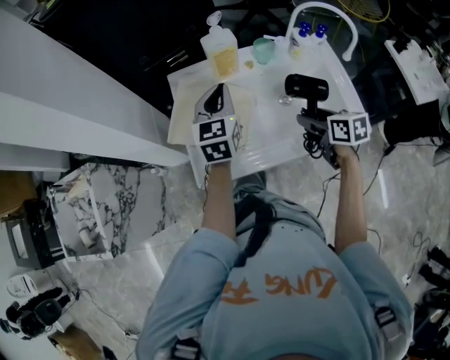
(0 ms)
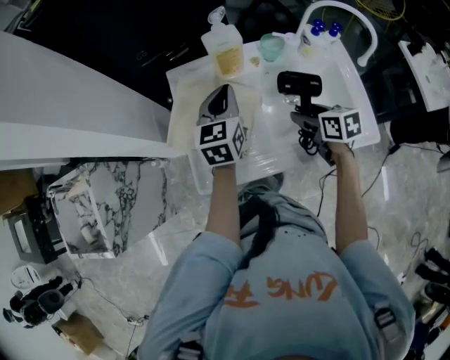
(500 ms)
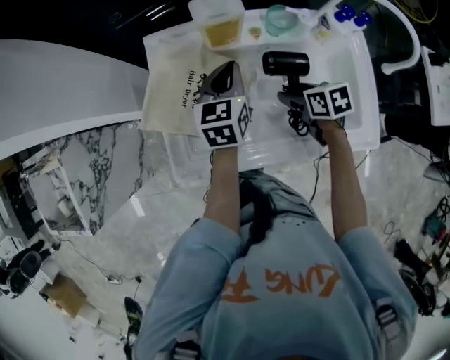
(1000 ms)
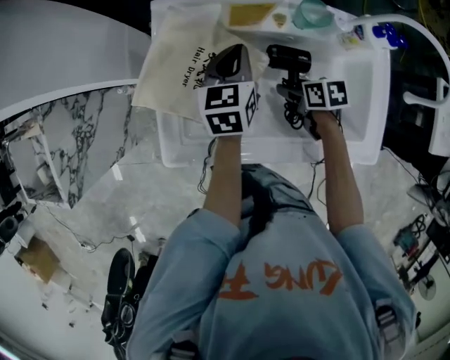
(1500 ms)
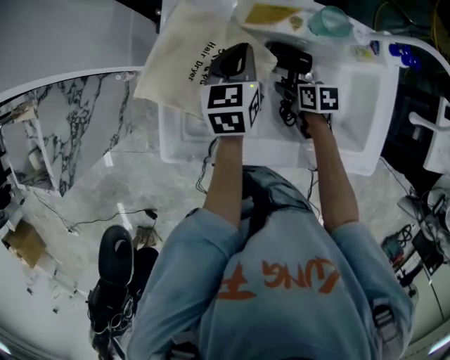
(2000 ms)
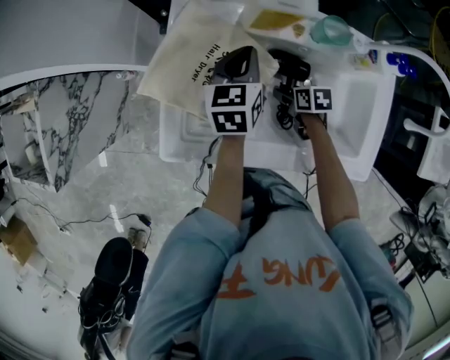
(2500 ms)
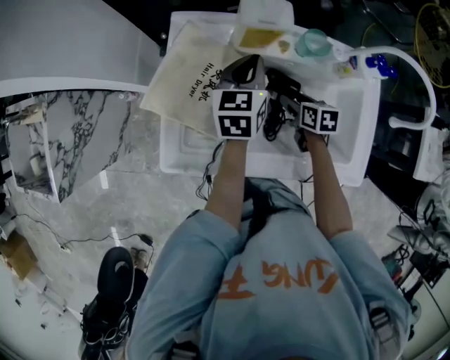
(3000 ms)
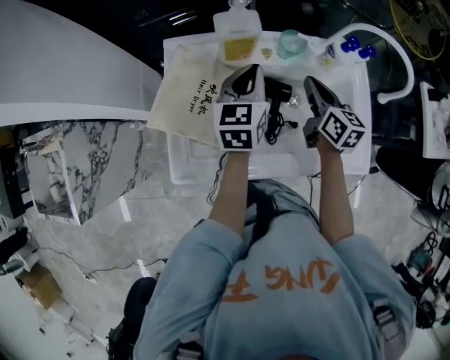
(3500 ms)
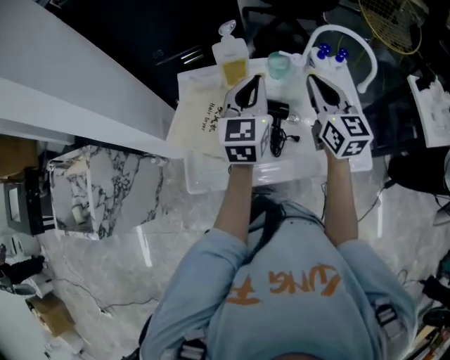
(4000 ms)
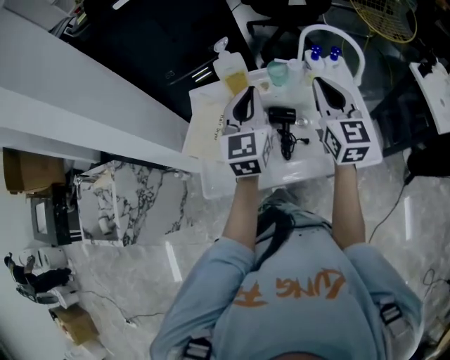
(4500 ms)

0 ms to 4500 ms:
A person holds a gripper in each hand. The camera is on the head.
0 ms to 2000 ms: The two grippers go some 20 cm downward and forward. The right gripper swivels about 30 degrees. Meanwhile the left gripper changes its angle by some 30 degrees.
2000 ms to 4500 ms: The left gripper travels upward by roughly 25 cm, and changes its angle by roughly 40 degrees. The right gripper heads upward, covering roughly 40 cm, tips its fingers upward by some 60 degrees, and closes up.

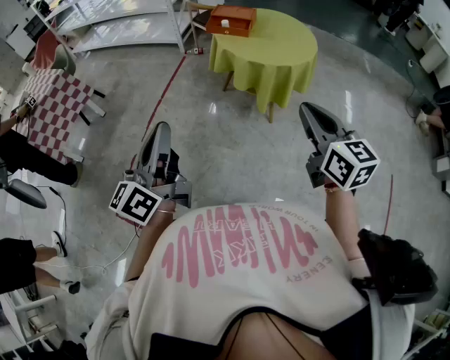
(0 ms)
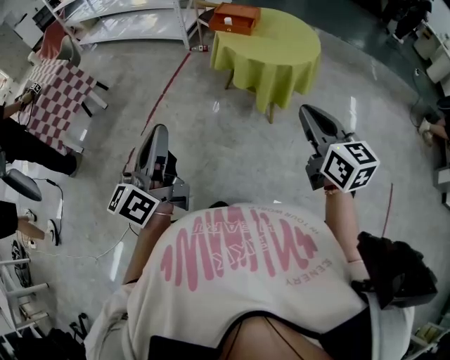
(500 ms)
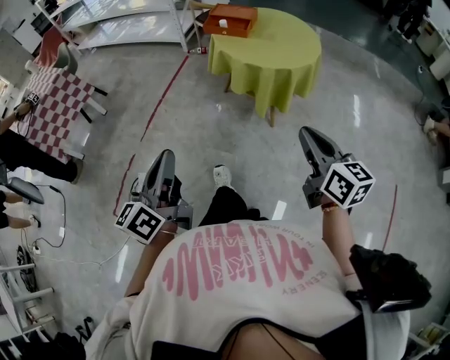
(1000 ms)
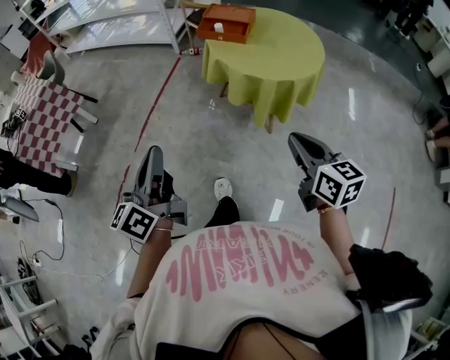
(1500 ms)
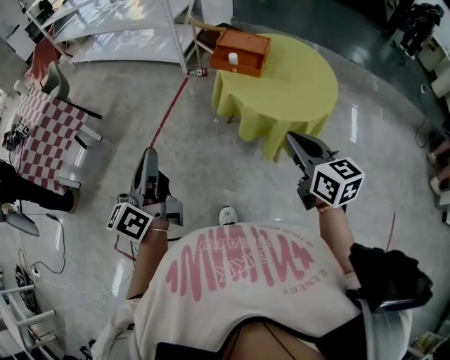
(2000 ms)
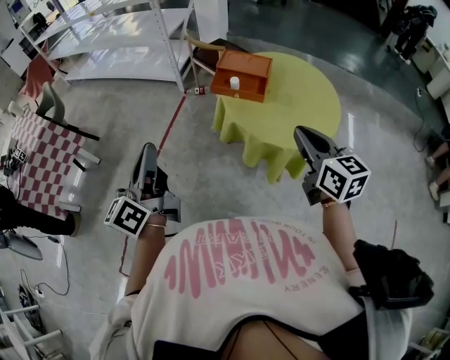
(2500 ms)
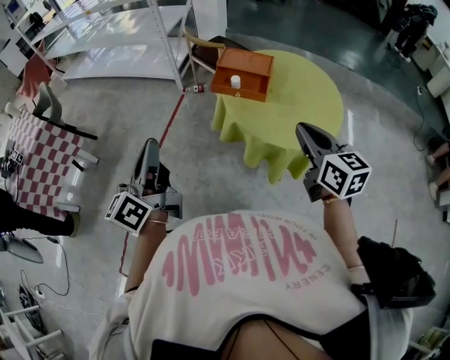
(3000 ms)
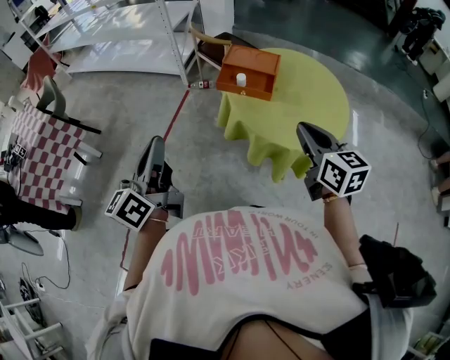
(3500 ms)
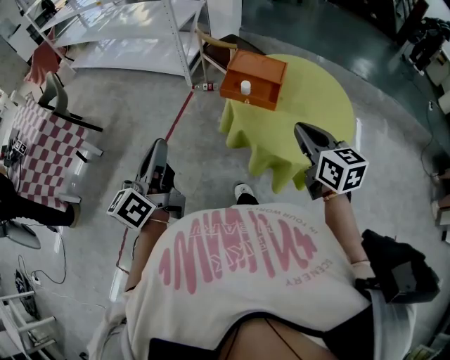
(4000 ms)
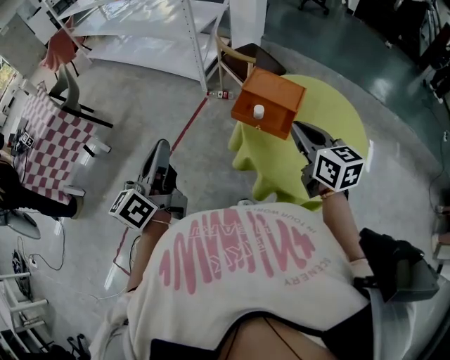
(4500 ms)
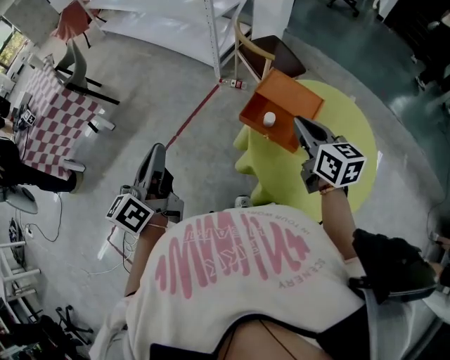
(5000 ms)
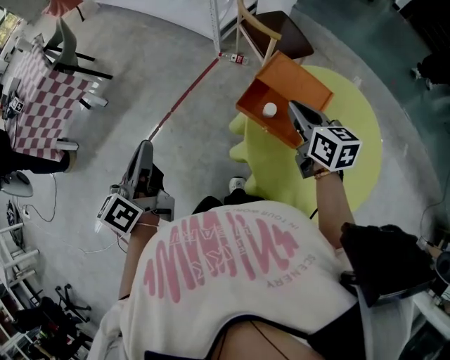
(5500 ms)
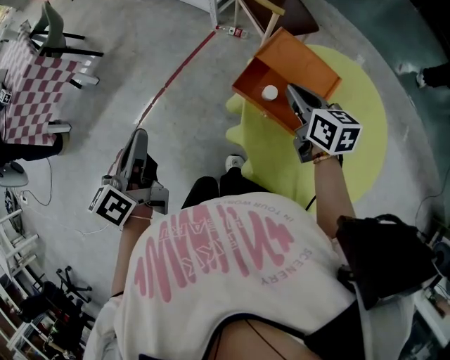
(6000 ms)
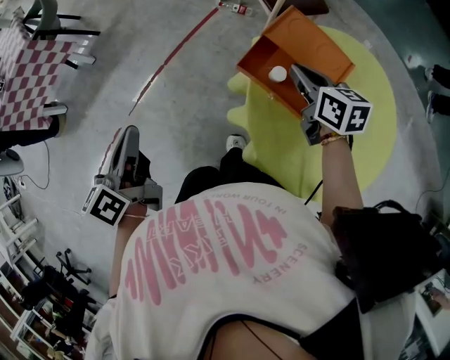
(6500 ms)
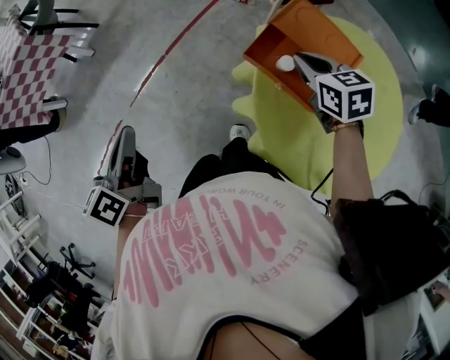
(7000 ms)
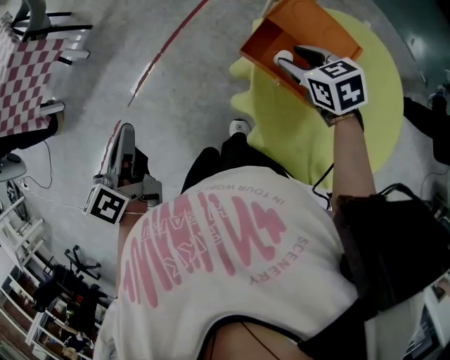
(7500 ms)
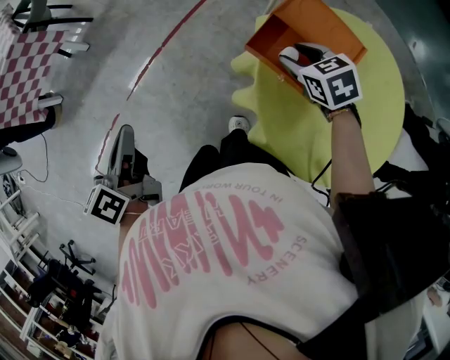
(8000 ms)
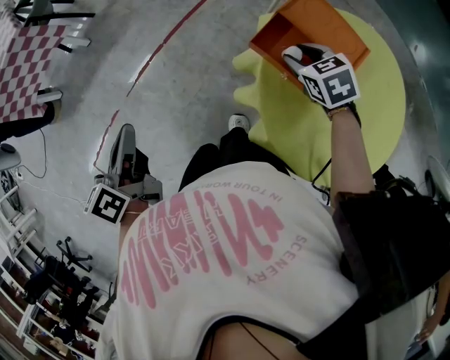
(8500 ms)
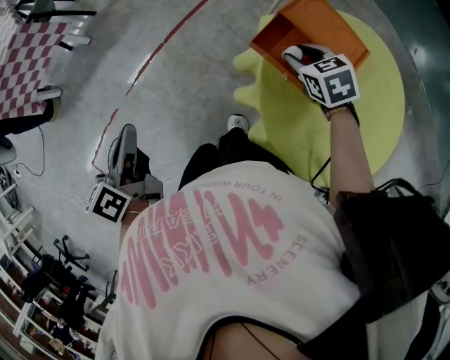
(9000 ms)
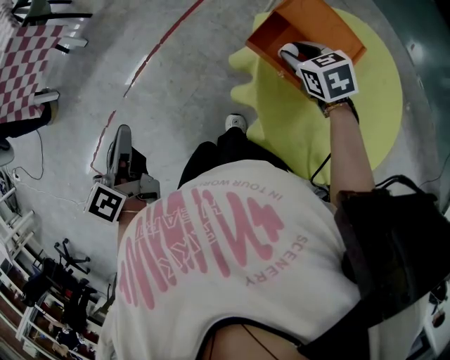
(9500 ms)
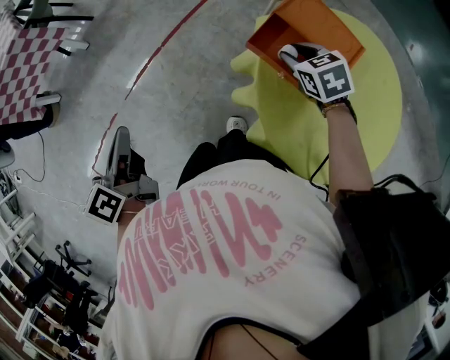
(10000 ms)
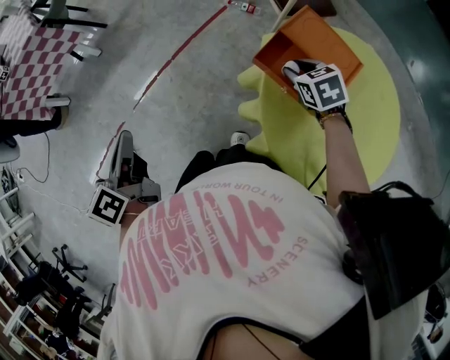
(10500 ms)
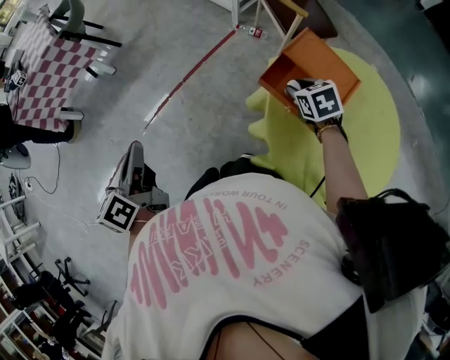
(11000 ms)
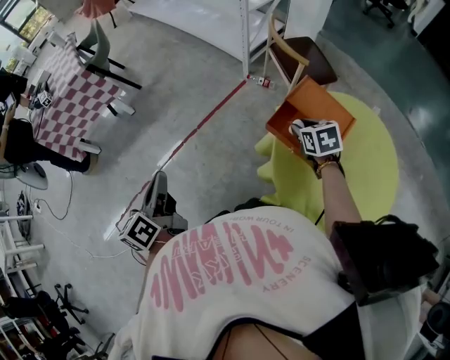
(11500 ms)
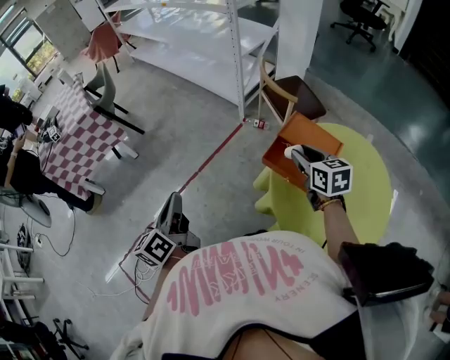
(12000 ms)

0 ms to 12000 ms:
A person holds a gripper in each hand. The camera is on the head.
0 ms to 2000 ms: The two grippers go approximately 30 cm forward.
2000 ms to 4000 ms: Both grippers move forward, approximately 20 cm.
4000 ms to 6000 ms: The right gripper moves forward, some 35 cm, and rotates roughly 20 degrees. Meanwhile the left gripper travels forward and downward by roughly 20 cm, and swivels about 30 degrees.
6000 ms to 8000 ms: The right gripper shifts about 10 cm downward, rotates some 40 degrees, and opens its fingers, while the left gripper moves to the left and downward, approximately 10 cm.
8000 ms to 10000 ms: The grippers move only a little.
10000 ms to 12000 ms: The left gripper moves upward, approximately 10 cm. Meanwhile the right gripper heads upward, covering approximately 20 cm, and changes its angle by some 30 degrees.

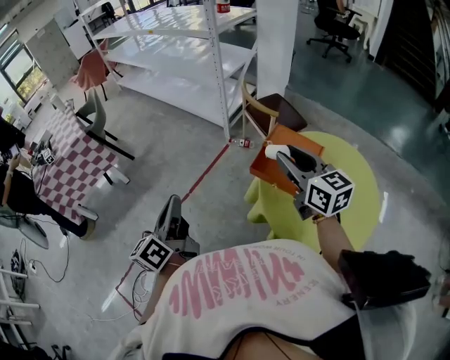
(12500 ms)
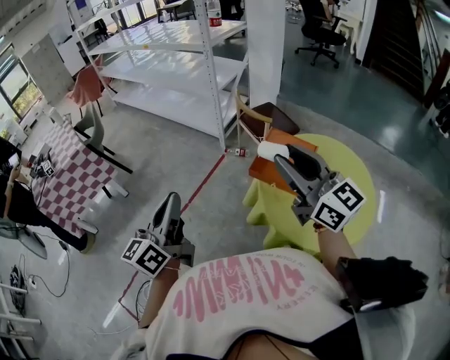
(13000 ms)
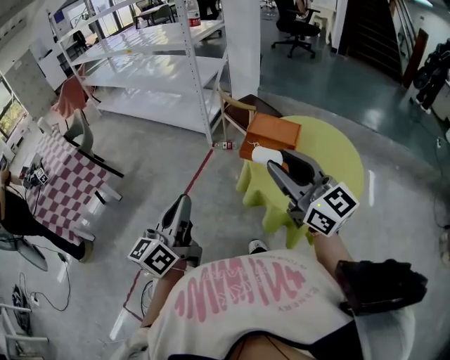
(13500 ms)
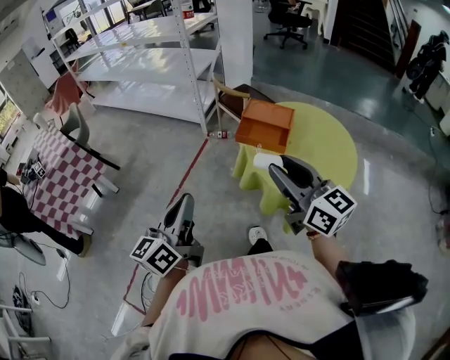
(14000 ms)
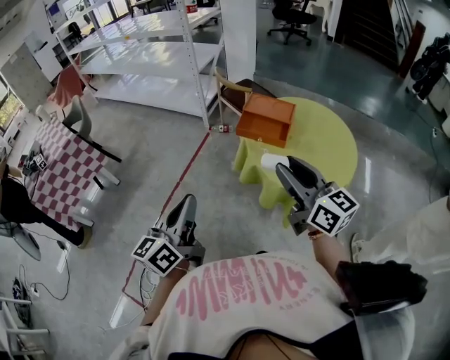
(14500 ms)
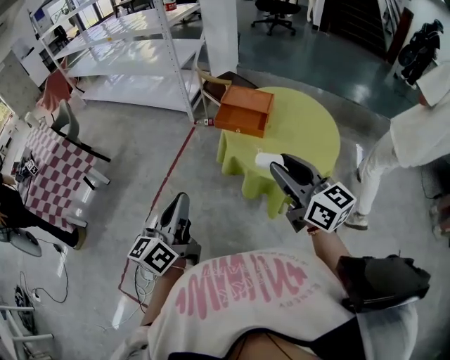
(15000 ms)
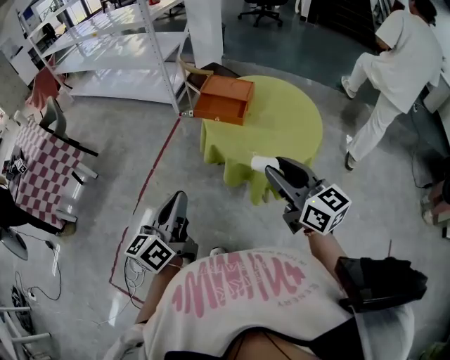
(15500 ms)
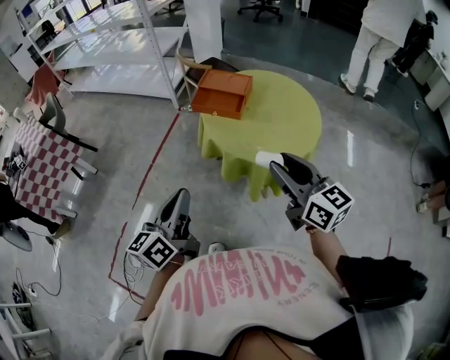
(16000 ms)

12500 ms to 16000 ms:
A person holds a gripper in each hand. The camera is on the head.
12500 ms to 14500 ms: The grippers both shift backward by approximately 25 cm. The left gripper rotates about 20 degrees.
14500 ms to 16000 ms: The grippers both shift to the right and backward by about 15 cm.

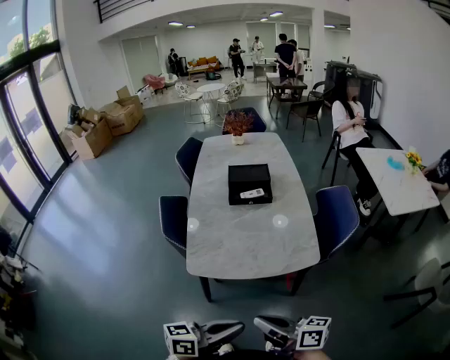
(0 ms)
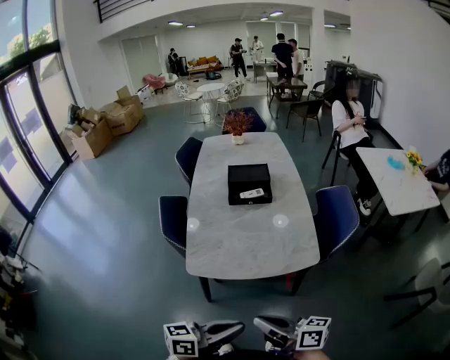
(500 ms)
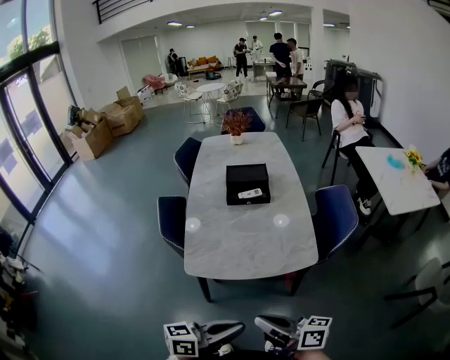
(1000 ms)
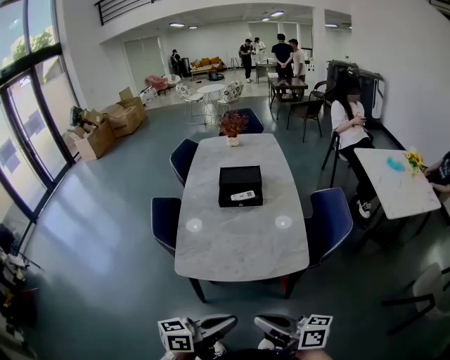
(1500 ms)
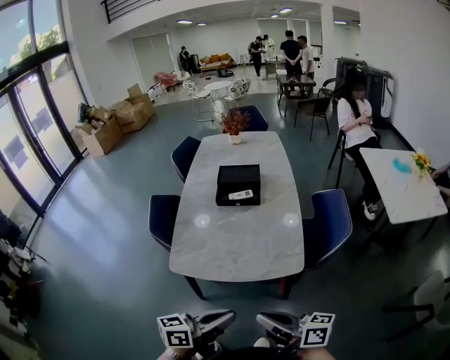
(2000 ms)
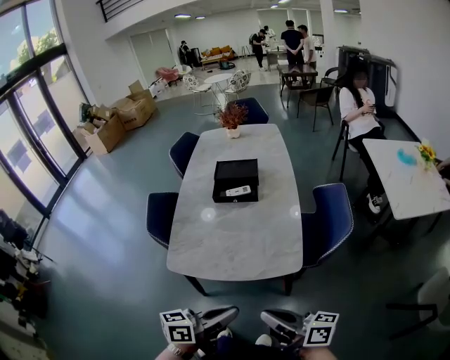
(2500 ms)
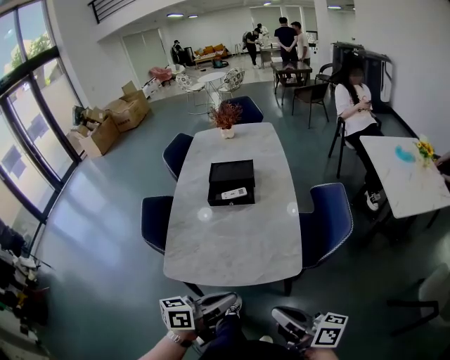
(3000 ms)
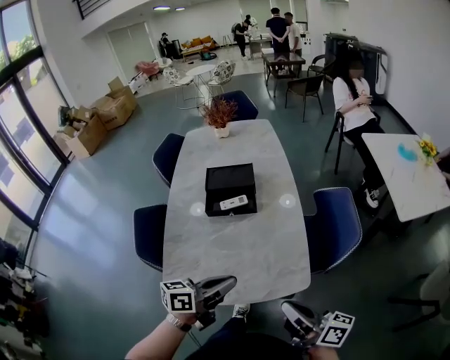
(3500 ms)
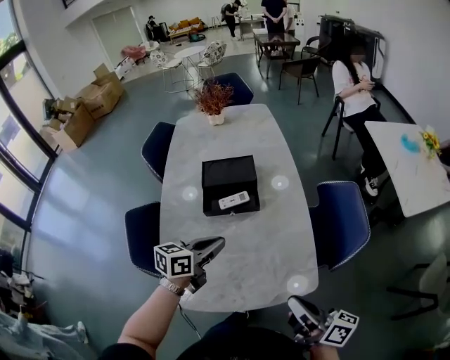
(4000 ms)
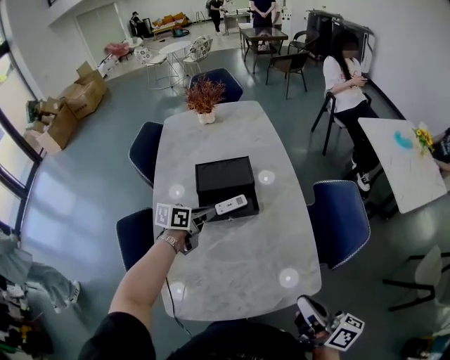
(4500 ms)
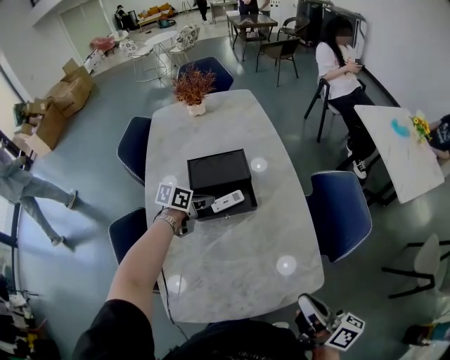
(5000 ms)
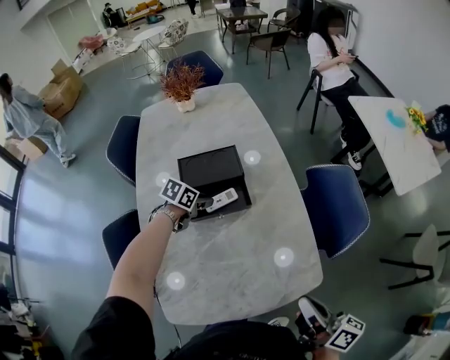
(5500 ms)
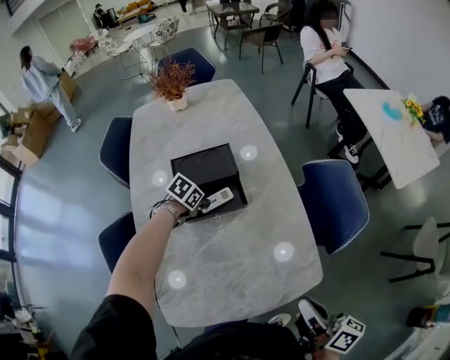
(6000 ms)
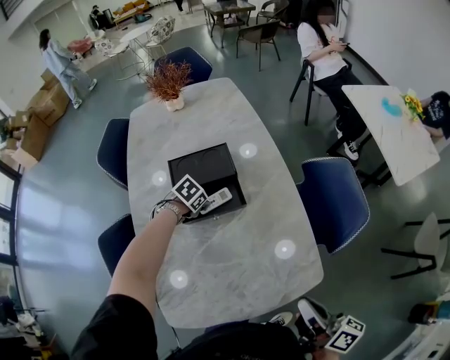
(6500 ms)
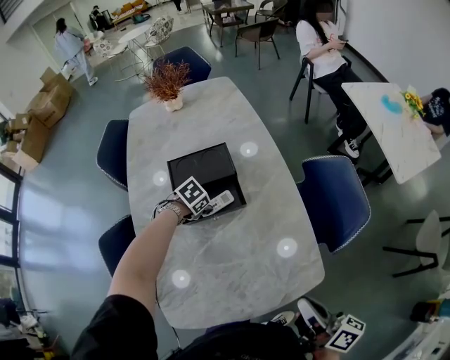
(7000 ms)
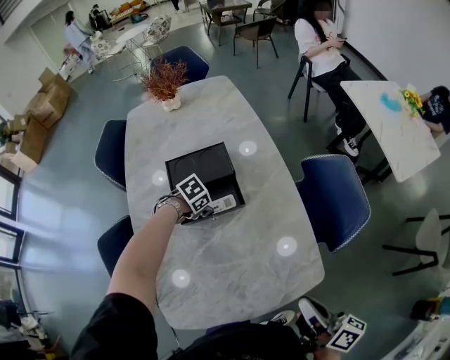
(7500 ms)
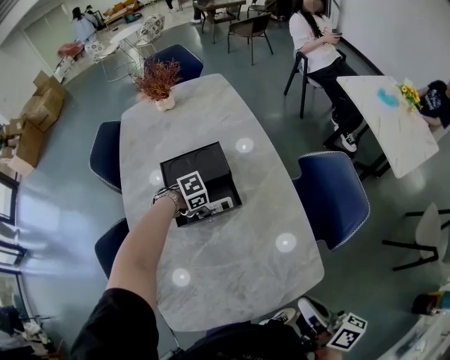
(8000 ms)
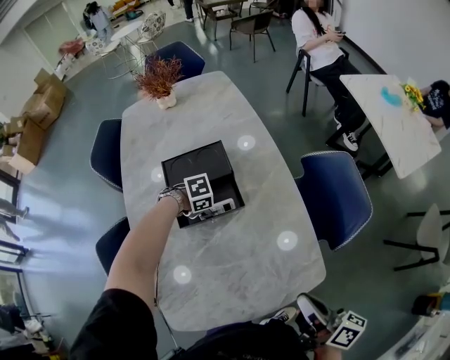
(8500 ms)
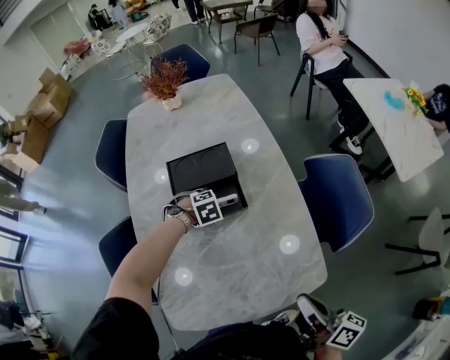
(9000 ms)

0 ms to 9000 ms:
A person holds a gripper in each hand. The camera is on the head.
0 ms to 2000 ms: The left gripper travels to the right and forward by about 10 cm, while the right gripper moves to the right, about 10 cm.
2000 ms to 4500 ms: The right gripper heads forward, covering about 25 cm, and swivels roughly 40 degrees; the left gripper heads forward, covering roughly 50 cm, and turns by roughly 30 degrees.
4500 ms to 7000 ms: The left gripper travels downward and forward by some 15 cm, points its fingers about 40 degrees further downward, and opens.
7000 ms to 9000 ms: The left gripper turns by about 30 degrees.
